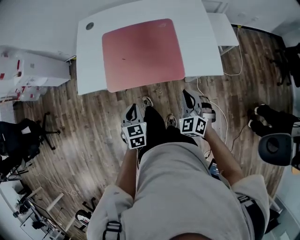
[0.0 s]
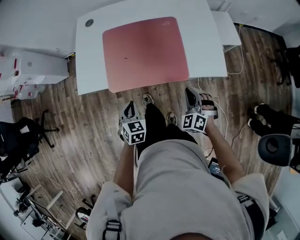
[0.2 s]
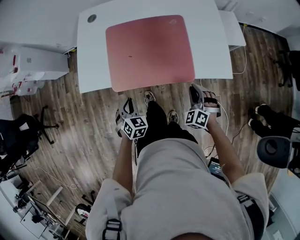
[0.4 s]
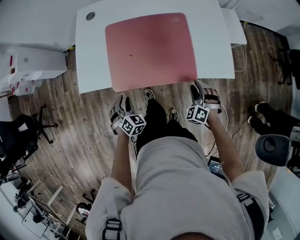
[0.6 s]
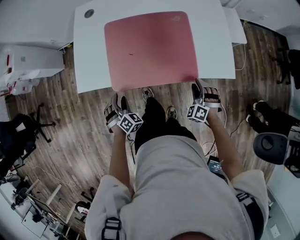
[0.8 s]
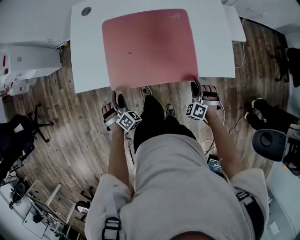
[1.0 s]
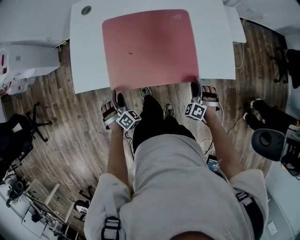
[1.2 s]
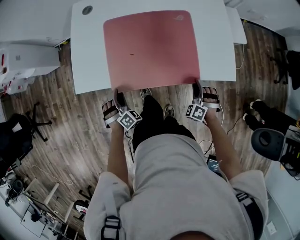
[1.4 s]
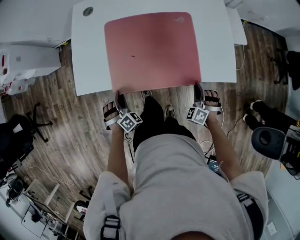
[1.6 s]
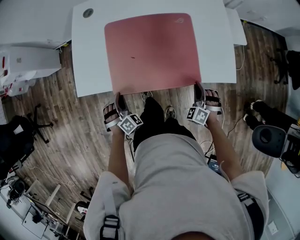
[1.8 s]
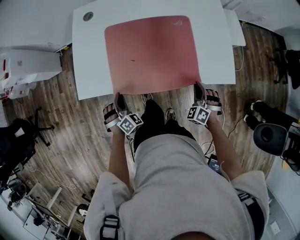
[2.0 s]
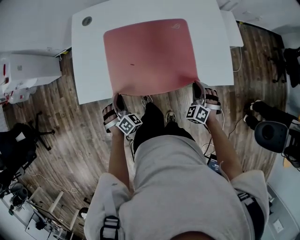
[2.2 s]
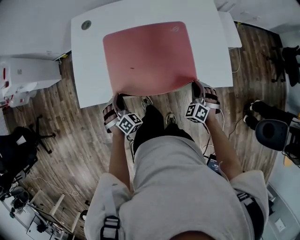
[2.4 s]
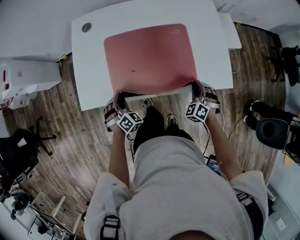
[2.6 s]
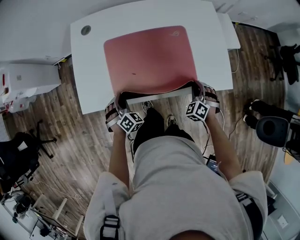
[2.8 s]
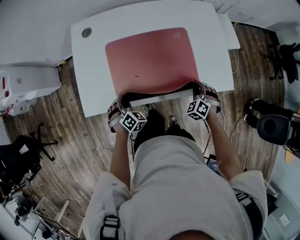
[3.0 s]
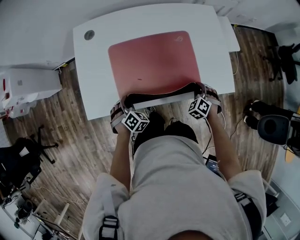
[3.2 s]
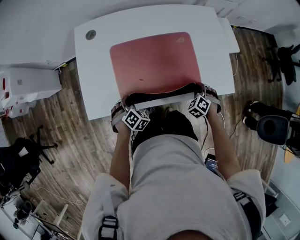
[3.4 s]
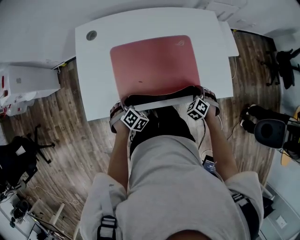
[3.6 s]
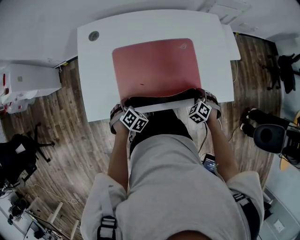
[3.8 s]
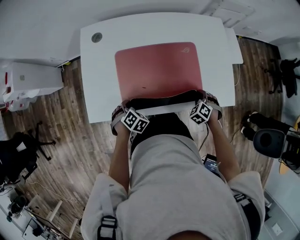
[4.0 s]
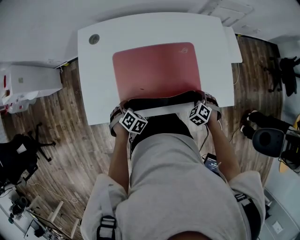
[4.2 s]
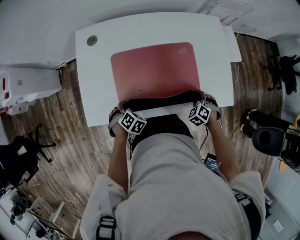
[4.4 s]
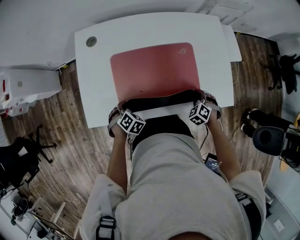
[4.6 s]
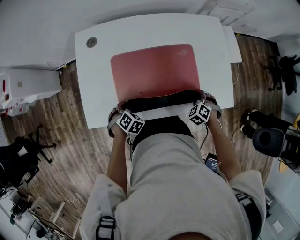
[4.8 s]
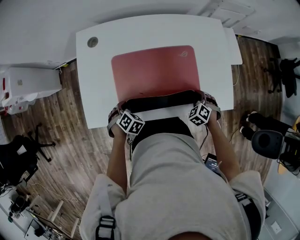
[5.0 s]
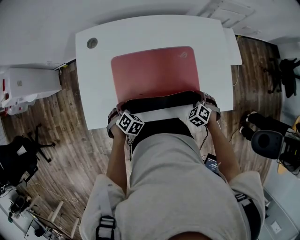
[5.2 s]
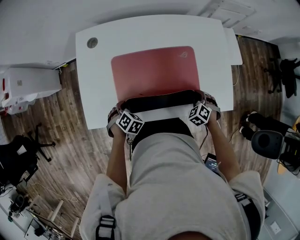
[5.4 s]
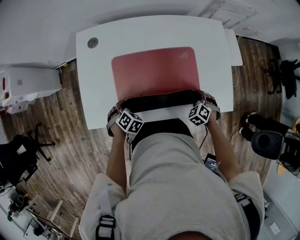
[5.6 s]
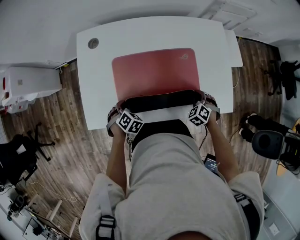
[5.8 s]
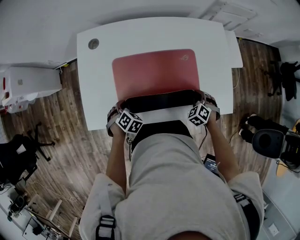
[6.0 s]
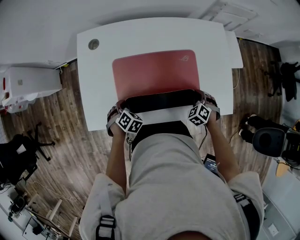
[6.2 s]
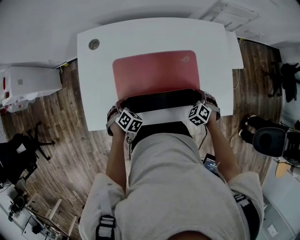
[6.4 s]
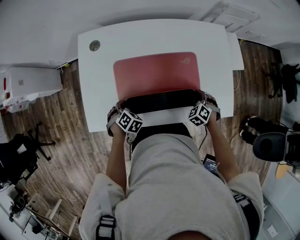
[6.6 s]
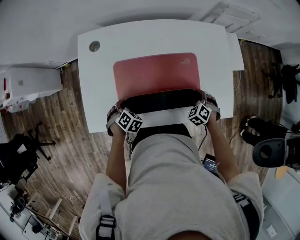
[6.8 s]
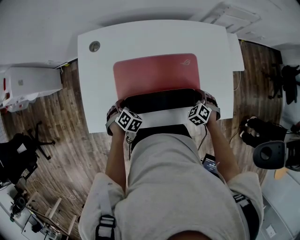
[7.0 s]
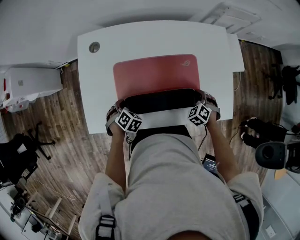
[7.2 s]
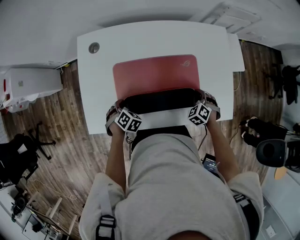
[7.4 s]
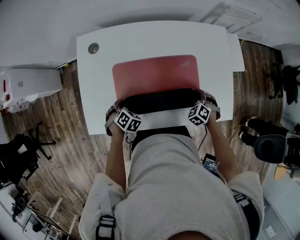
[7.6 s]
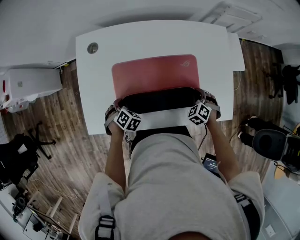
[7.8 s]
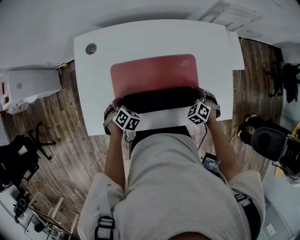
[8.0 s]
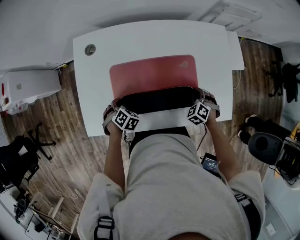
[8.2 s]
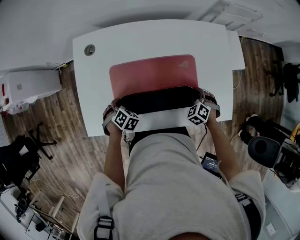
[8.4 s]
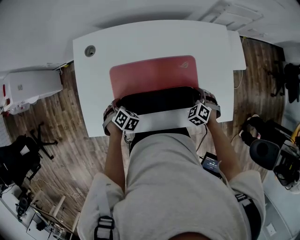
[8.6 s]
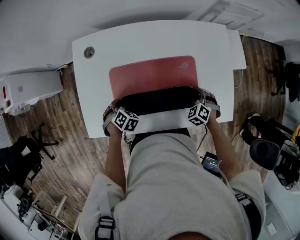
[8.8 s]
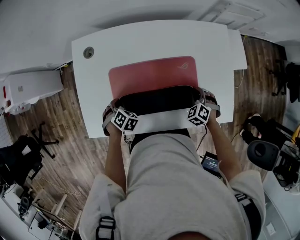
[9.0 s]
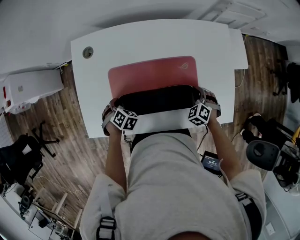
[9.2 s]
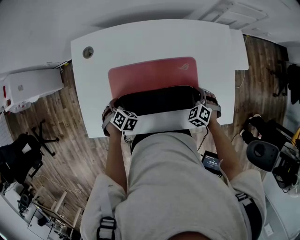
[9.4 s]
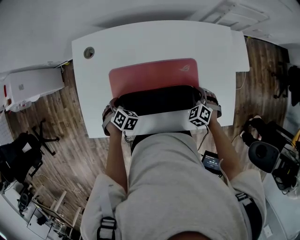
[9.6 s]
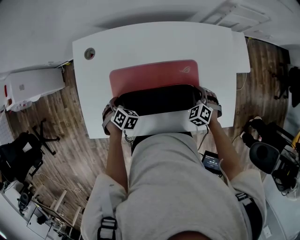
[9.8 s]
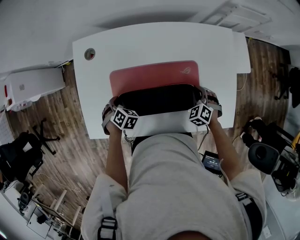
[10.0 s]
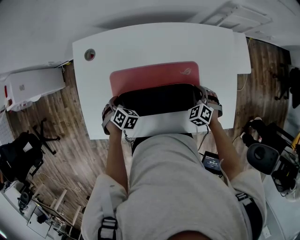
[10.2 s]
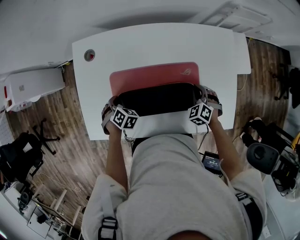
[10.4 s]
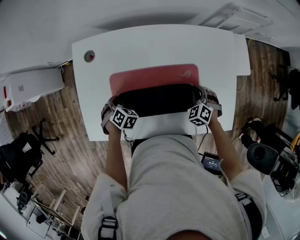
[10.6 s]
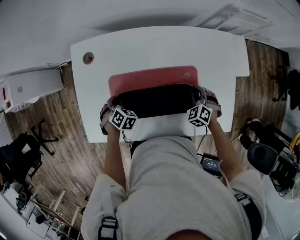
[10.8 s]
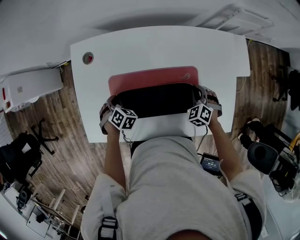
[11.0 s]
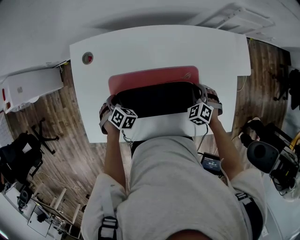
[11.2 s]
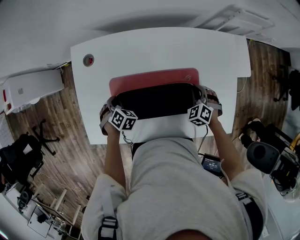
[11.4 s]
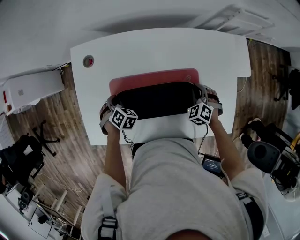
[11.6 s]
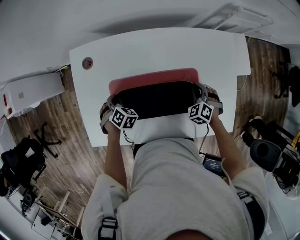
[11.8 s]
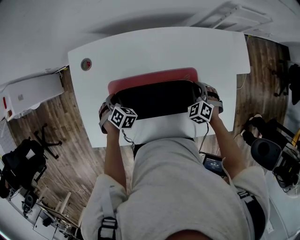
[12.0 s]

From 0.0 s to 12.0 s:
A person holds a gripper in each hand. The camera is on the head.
From 0.0 s to 1.6 s: The left gripper travels to the left, downward and forward by some 20 cm, twists roughly 50 degrees clockwise, seen from behind, and opens its fingers. The right gripper is displaced downward and forward by roughly 15 cm, turns by approximately 30 degrees, and opens, then closes once more.
From 1.6 s to 3.0 s: Both grippers move forward, approximately 10 cm.
From 4.4 s to 6.0 s: The grippers stay close to where they were, moving slightly.
From 6.0 s to 7.6 s: The grippers stay close to where they were, moving slightly.
From 7.6 s to 9.0 s: The grippers stay close to where they were, moving slightly.
From 9.0 s to 10.4 s: The grippers make only small movements.
From 10.4 s to 12.0 s: The left gripper moves forward, some 5 cm.

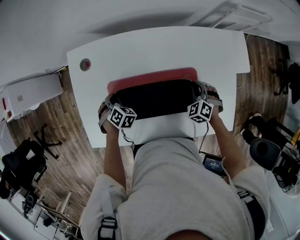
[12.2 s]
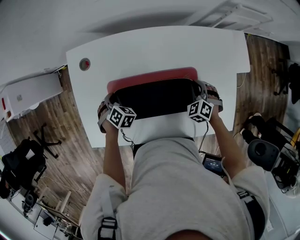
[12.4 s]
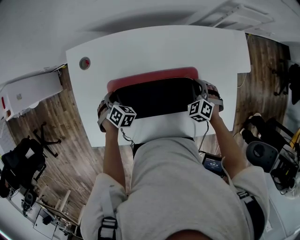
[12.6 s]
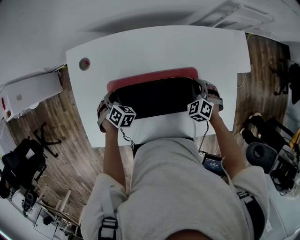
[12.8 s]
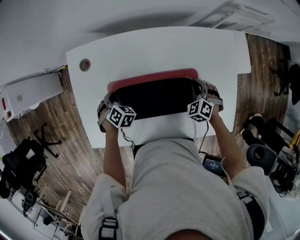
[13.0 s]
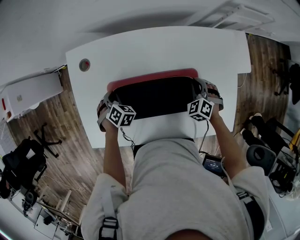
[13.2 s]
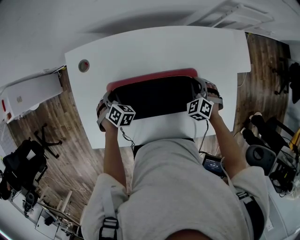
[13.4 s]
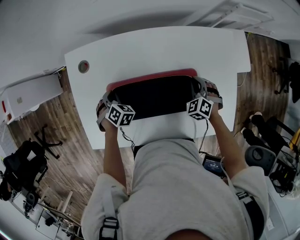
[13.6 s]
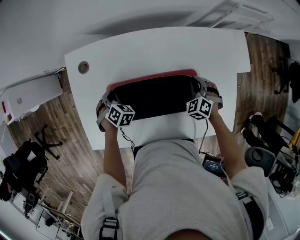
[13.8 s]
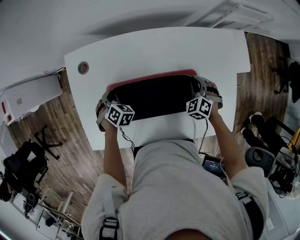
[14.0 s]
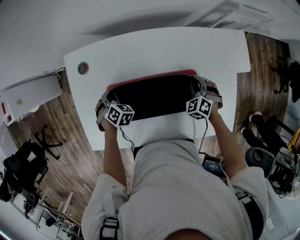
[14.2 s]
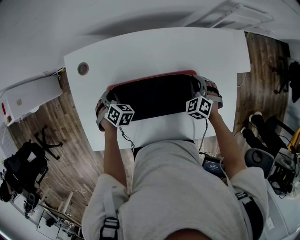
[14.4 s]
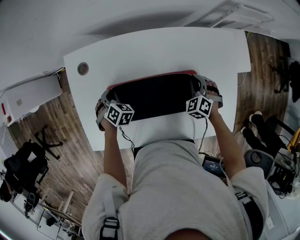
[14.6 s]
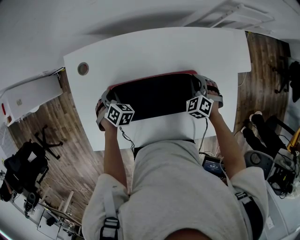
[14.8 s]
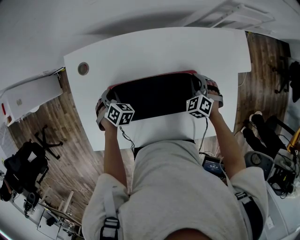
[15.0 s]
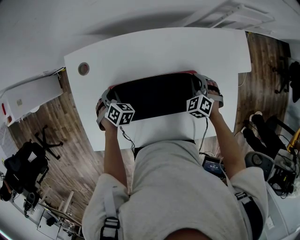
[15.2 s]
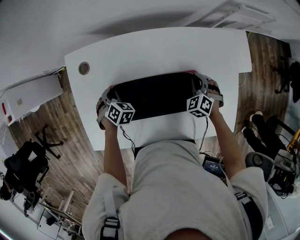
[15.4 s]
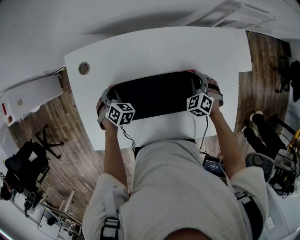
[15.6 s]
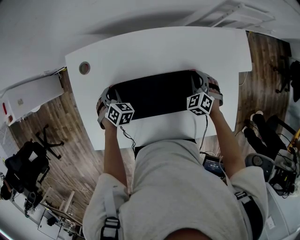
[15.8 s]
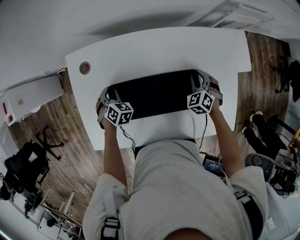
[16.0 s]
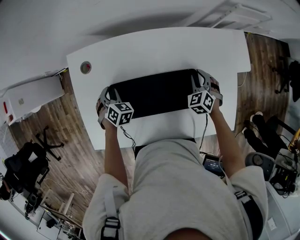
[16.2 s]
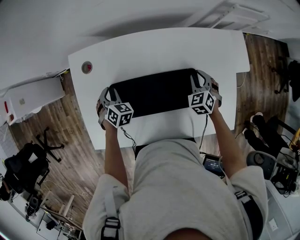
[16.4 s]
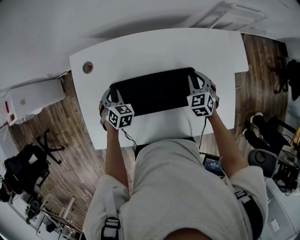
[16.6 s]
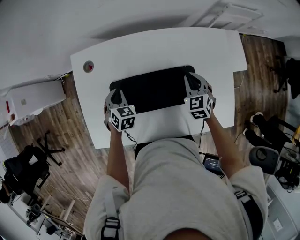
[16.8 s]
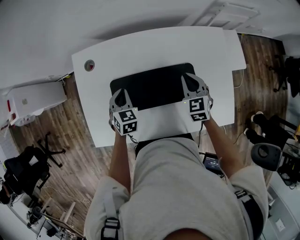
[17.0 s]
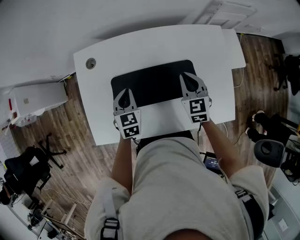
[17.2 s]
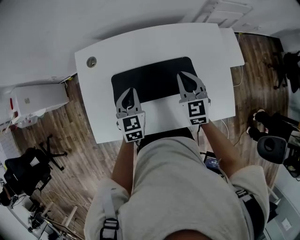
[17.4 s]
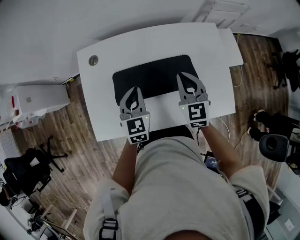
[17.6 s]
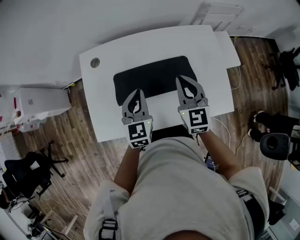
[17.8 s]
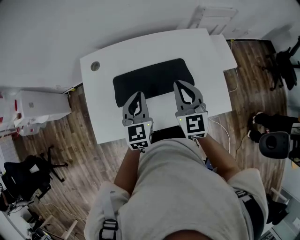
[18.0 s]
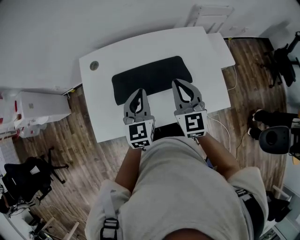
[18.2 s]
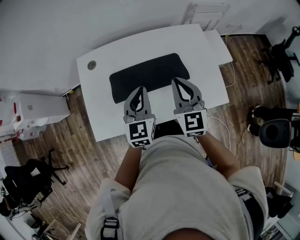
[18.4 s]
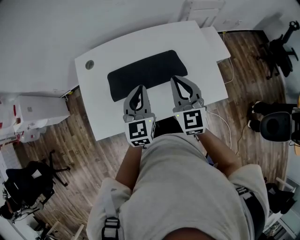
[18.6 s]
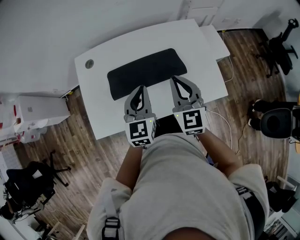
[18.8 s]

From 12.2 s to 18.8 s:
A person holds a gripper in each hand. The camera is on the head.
From 12.2 s to 15.4 s: There are only small adjustments of the grippers.
From 15.4 s to 17.2 s: The right gripper is displaced upward and to the left by roughly 15 cm, and rotates approximately 40 degrees, while the left gripper moves upward, backward and to the right, approximately 15 cm, and changes its angle by approximately 40 degrees.
From 17.2 s to 18.8 s: The right gripper travels backward and upward by some 25 cm. The left gripper shifts approximately 25 cm upward, backward and to the right, and swivels about 30 degrees.

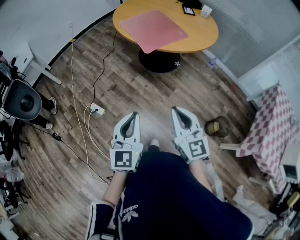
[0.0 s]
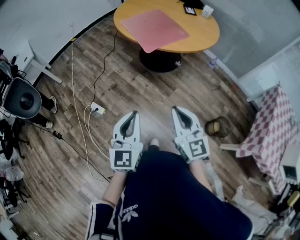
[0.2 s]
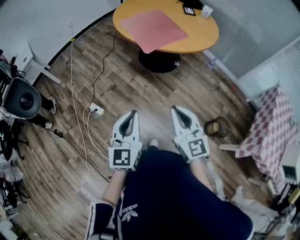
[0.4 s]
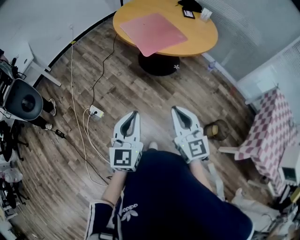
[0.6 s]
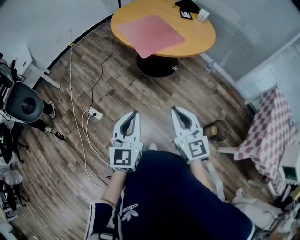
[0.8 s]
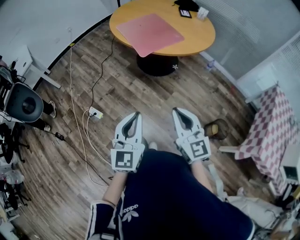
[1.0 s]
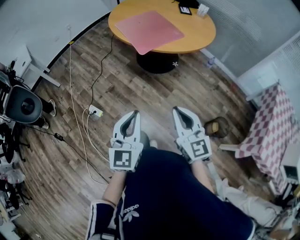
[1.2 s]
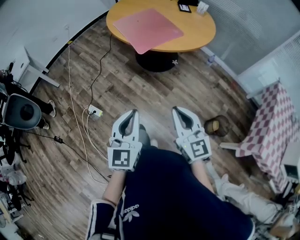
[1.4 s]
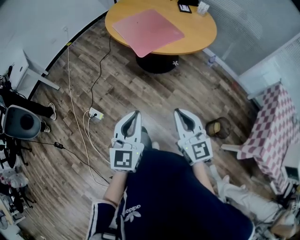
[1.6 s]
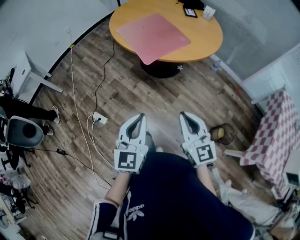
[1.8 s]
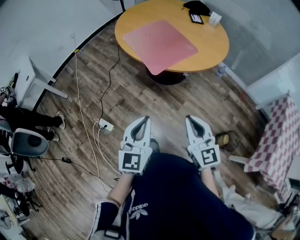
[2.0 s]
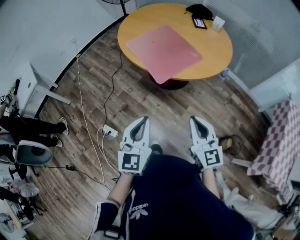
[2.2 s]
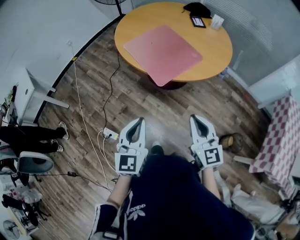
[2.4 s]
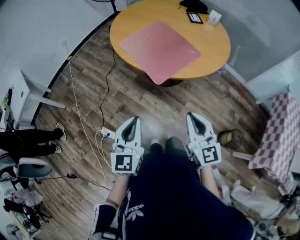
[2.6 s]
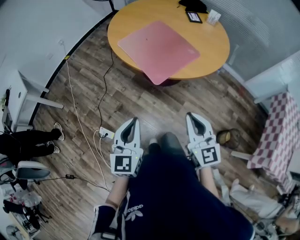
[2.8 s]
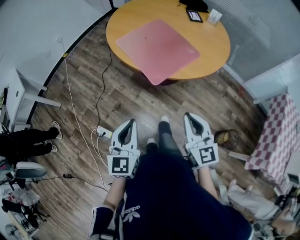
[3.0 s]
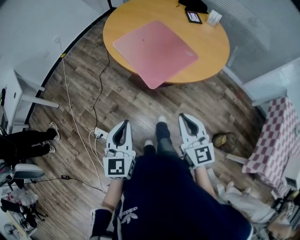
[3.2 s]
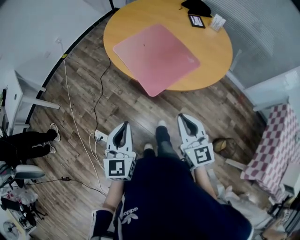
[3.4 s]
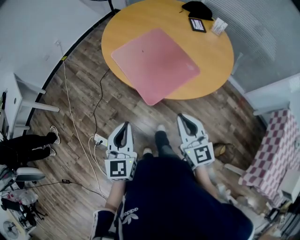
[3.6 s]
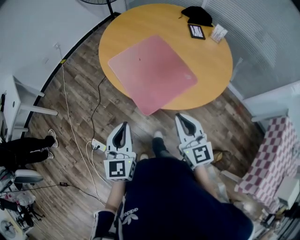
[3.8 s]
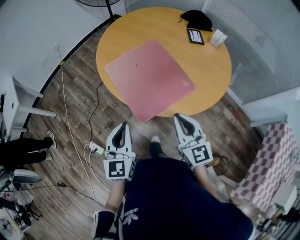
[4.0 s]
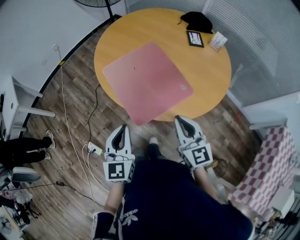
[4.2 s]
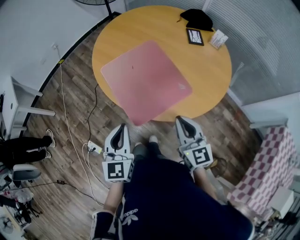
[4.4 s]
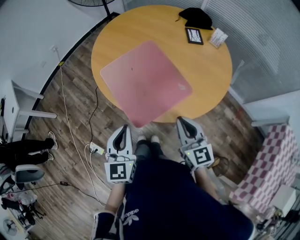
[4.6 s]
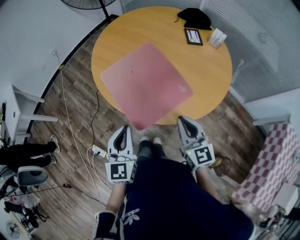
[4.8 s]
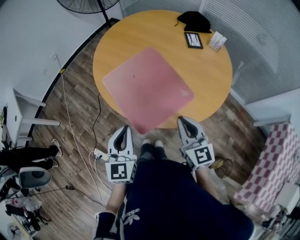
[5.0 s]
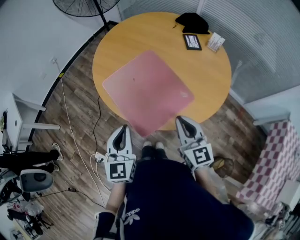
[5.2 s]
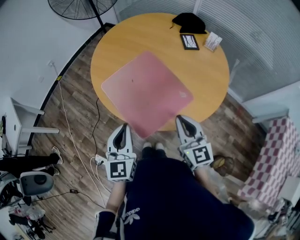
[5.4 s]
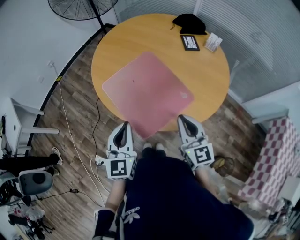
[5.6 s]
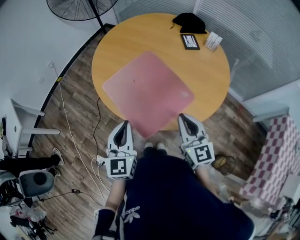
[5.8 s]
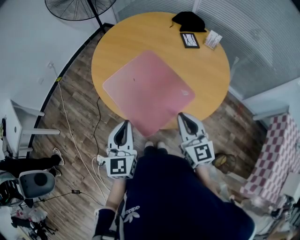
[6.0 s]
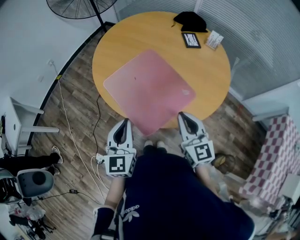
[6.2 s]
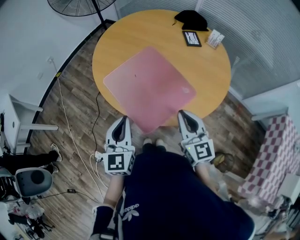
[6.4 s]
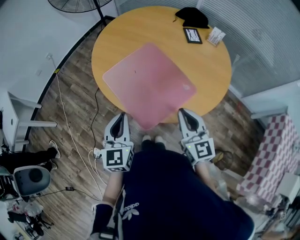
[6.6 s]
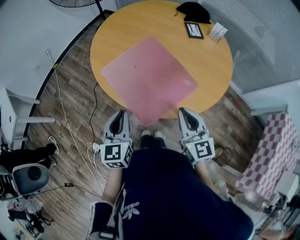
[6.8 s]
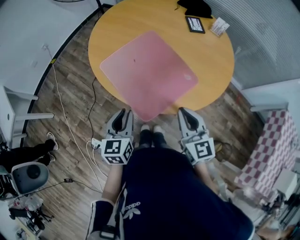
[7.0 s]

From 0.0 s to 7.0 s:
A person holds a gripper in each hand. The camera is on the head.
From 0.0 s to 1.4 s: The grippers move only a little.
From 1.4 s to 2.8 s: The left gripper travels forward and to the left by some 25 cm. Meanwhile the right gripper moves forward, approximately 20 cm.
From 2.8 s to 4.2 s: The right gripper is displaced forward by roughly 20 cm, while the left gripper shifts about 20 cm forward and to the right.
From 4.2 s to 5.6 s: The right gripper is displaced forward by about 5 cm; the left gripper goes about 10 cm forward.
From 5.6 s to 7.0 s: The left gripper goes approximately 10 cm downward.
